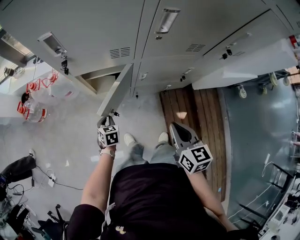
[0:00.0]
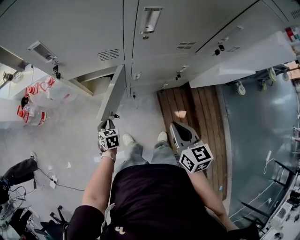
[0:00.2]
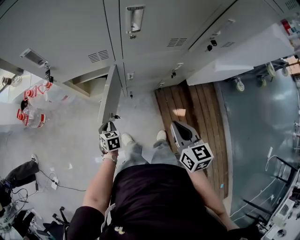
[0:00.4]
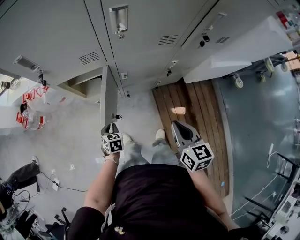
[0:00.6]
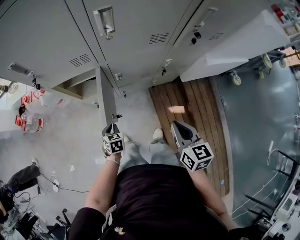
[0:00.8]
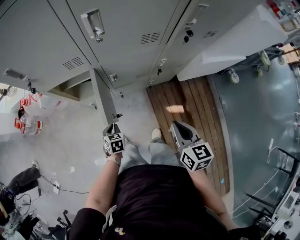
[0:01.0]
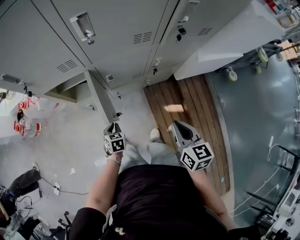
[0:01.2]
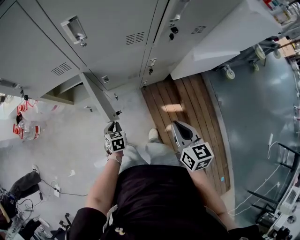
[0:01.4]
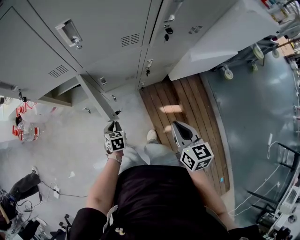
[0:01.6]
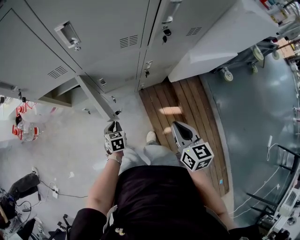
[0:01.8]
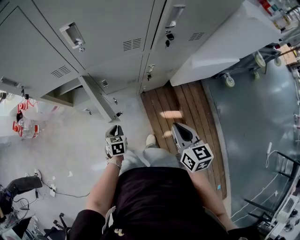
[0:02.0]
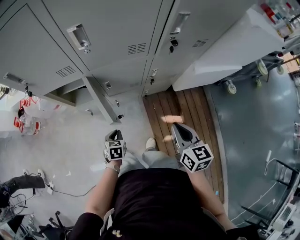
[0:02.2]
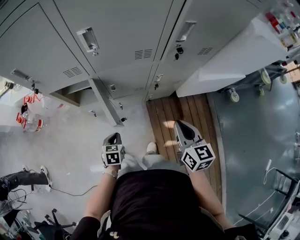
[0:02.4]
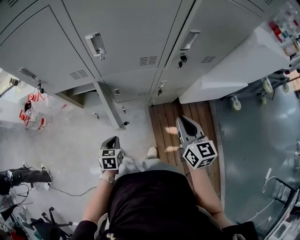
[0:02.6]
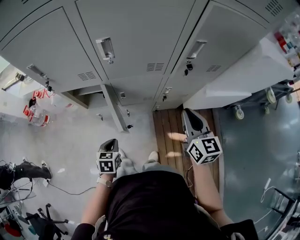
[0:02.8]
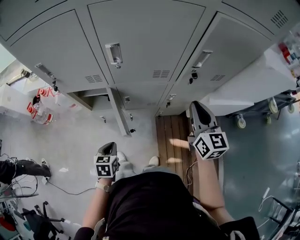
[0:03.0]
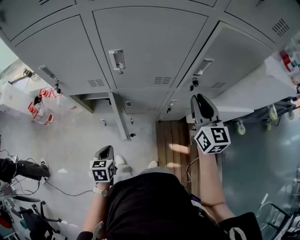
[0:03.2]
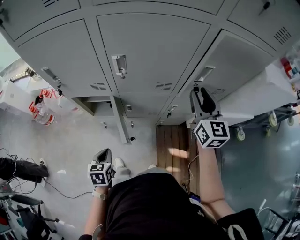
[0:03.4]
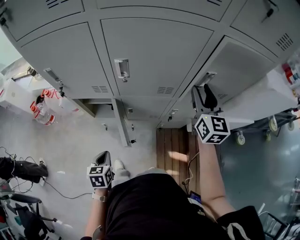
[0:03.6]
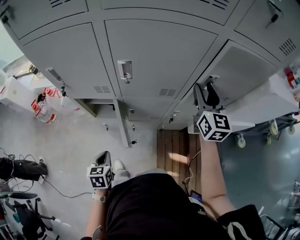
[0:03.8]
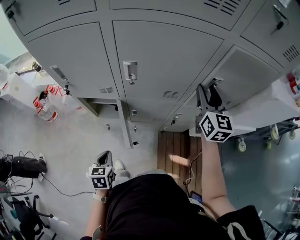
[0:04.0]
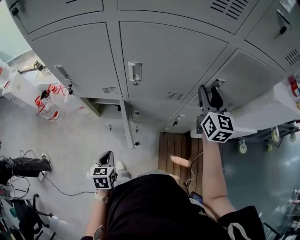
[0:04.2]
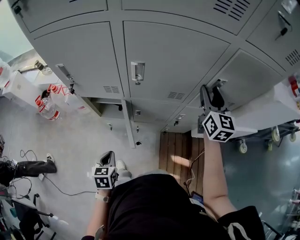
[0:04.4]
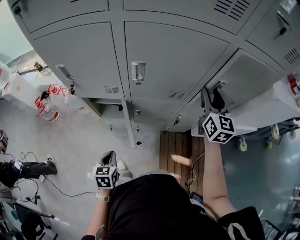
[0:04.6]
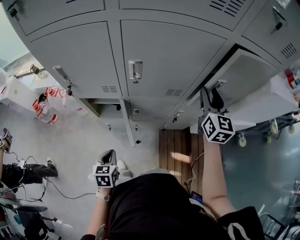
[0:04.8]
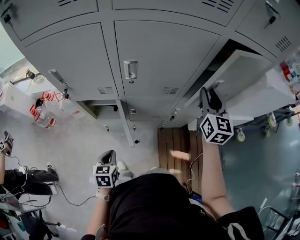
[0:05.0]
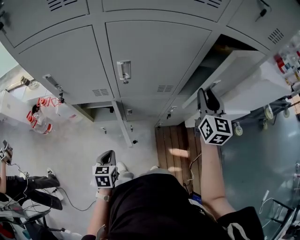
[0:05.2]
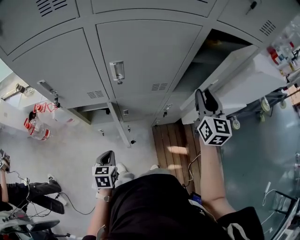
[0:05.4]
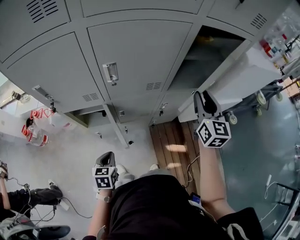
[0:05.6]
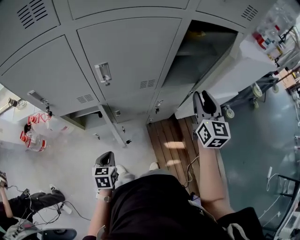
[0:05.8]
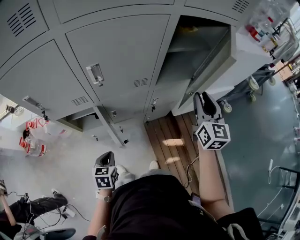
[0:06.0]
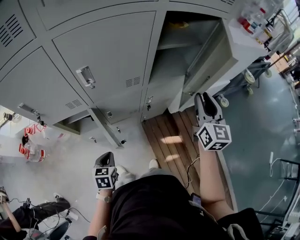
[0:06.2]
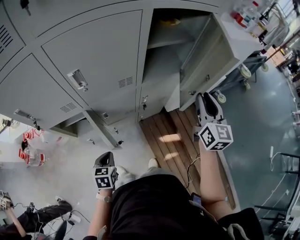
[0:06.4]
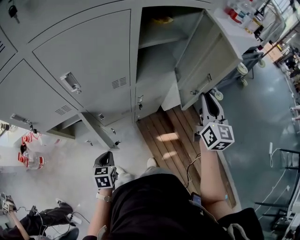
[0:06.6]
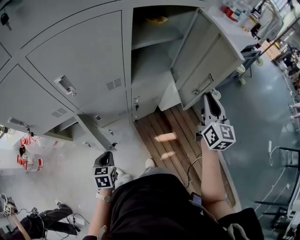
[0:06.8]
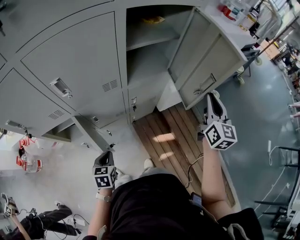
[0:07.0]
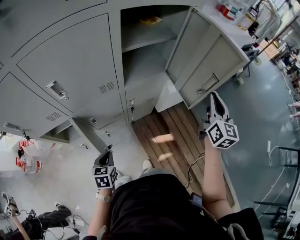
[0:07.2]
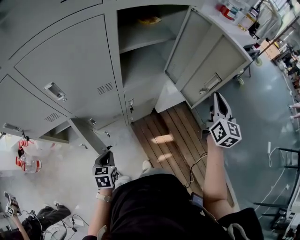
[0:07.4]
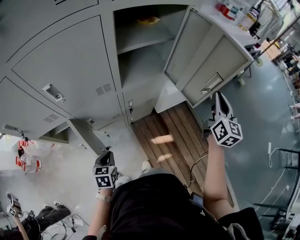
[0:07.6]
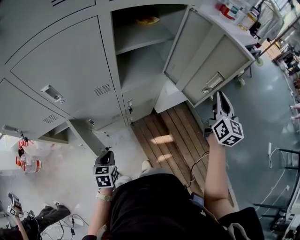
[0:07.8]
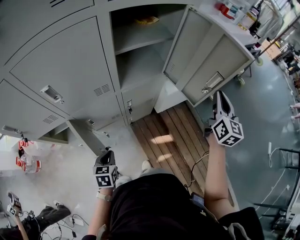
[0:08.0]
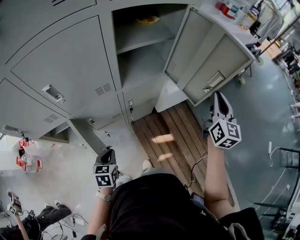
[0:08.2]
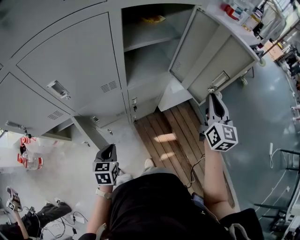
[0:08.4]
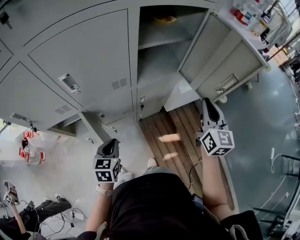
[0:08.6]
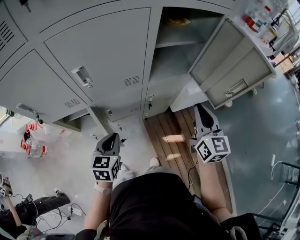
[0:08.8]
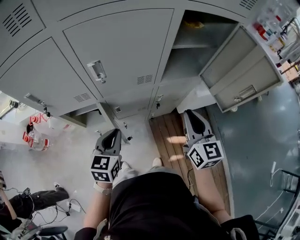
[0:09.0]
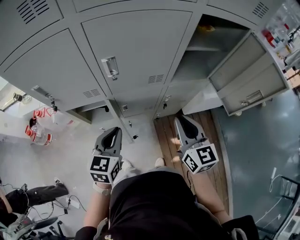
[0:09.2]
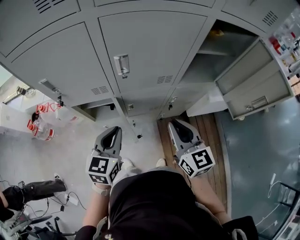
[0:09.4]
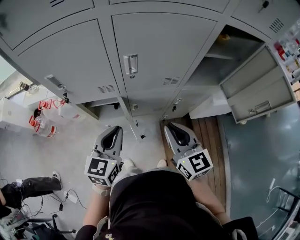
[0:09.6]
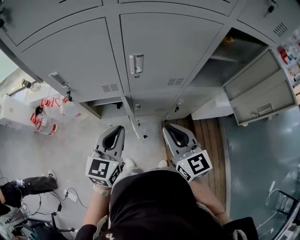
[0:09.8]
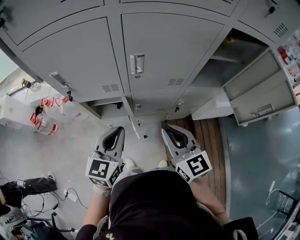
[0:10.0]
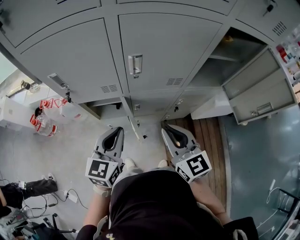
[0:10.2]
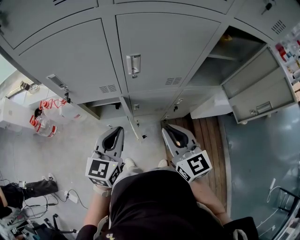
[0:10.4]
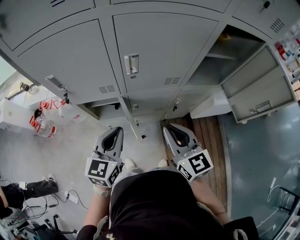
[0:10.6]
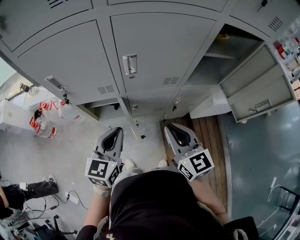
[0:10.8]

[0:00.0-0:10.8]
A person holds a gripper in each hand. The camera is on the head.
0:00.0 to 0:01.6: The grippers both shift to the right by approximately 20 cm.
0:01.6 to 0:03.0: The right gripper heads forward and upward, covering some 25 cm, and rotates some 20 degrees; the left gripper heads upward, covering approximately 15 cm.
0:03.0 to 0:04.6: The right gripper goes about 15 cm forward and upward, and opens up, while the left gripper ends up approximately 5 cm from where it was.
0:04.6 to 0:06.2: The right gripper goes approximately 20 cm backward and to the right, and rotates roughly 20 degrees; the left gripper goes approximately 5 cm to the right, and turns by roughly 20 degrees.
0:06.2 to 0:07.8: The right gripper goes roughly 20 cm to the right. The left gripper travels to the right and forward by approximately 10 cm.
0:07.8 to 0:09.2: The right gripper is displaced to the left by approximately 35 cm, and rotates roughly 40 degrees. Meanwhile the left gripper is displaced upward and to the left by about 20 cm, and turns by roughly 20 degrees.
0:09.2 to 0:10.8: The left gripper moves some 5 cm. Meanwhile the right gripper heads to the left, covering some 10 cm.

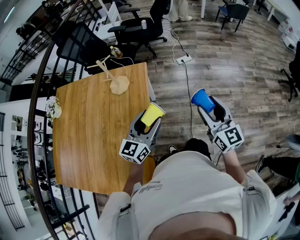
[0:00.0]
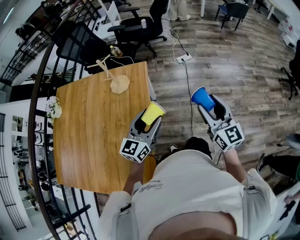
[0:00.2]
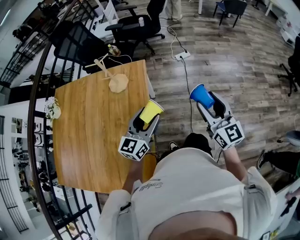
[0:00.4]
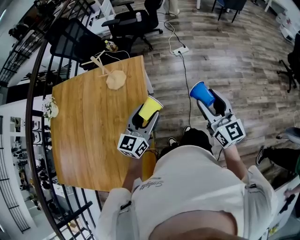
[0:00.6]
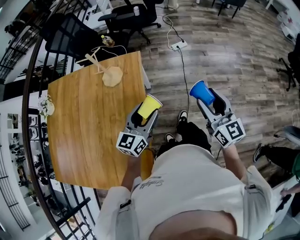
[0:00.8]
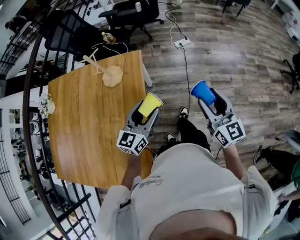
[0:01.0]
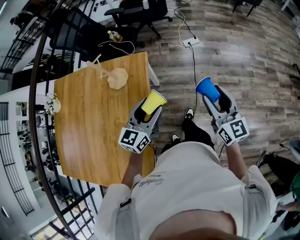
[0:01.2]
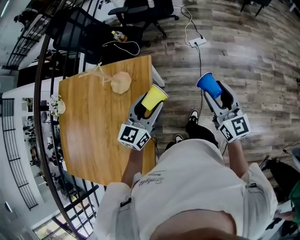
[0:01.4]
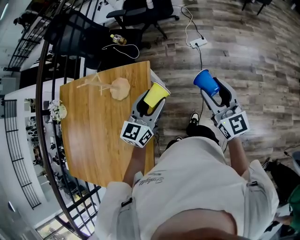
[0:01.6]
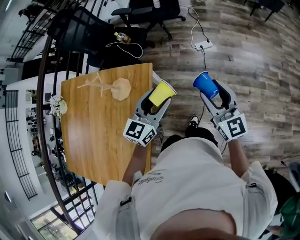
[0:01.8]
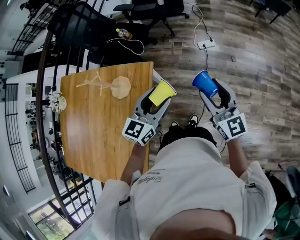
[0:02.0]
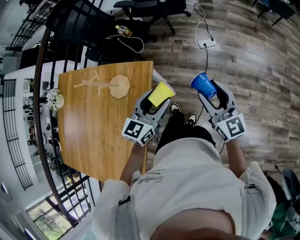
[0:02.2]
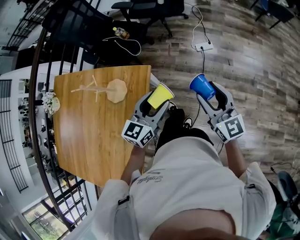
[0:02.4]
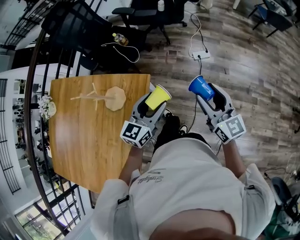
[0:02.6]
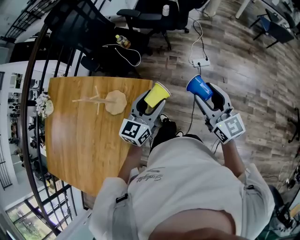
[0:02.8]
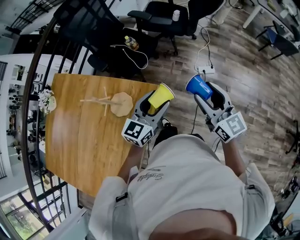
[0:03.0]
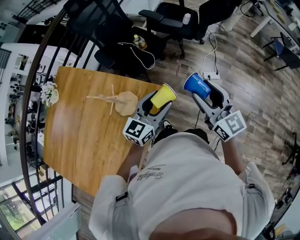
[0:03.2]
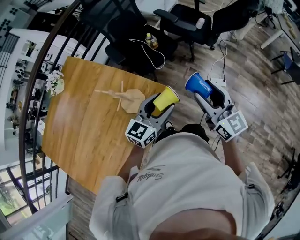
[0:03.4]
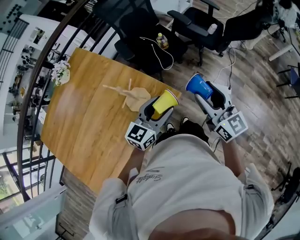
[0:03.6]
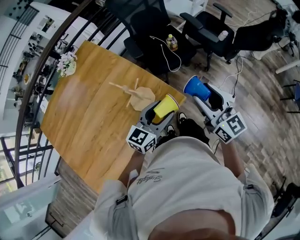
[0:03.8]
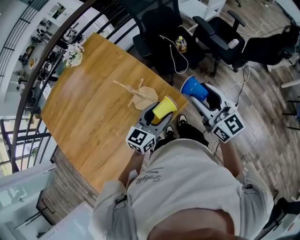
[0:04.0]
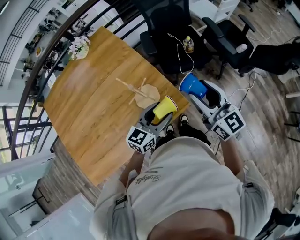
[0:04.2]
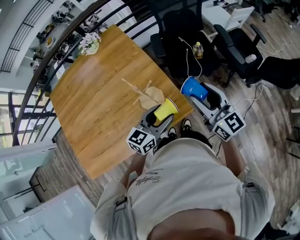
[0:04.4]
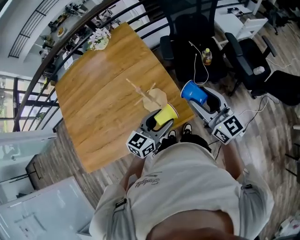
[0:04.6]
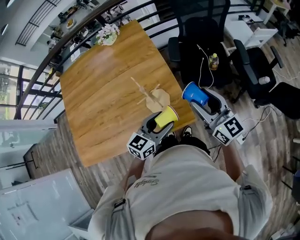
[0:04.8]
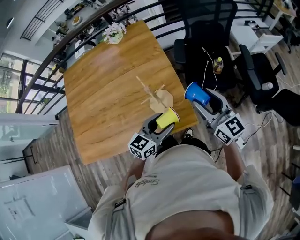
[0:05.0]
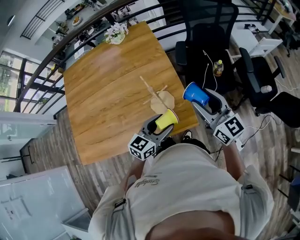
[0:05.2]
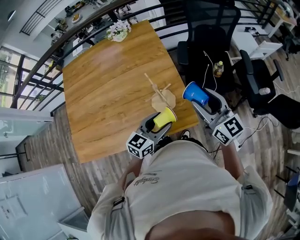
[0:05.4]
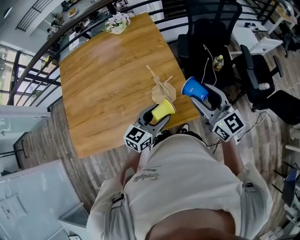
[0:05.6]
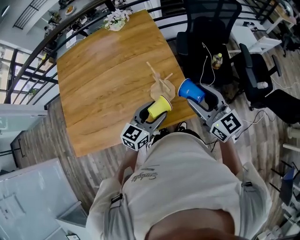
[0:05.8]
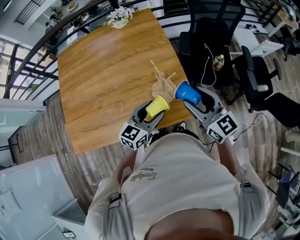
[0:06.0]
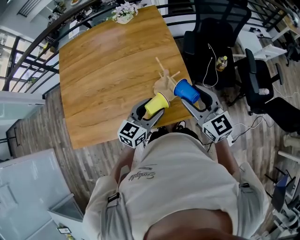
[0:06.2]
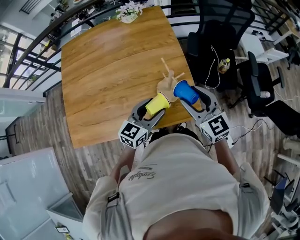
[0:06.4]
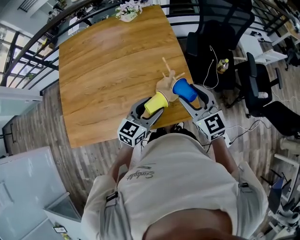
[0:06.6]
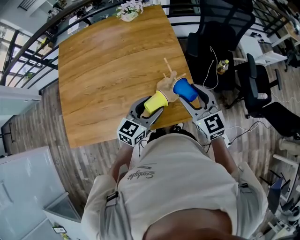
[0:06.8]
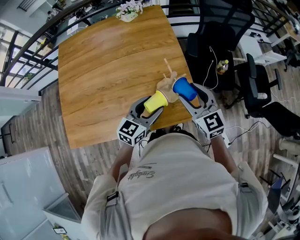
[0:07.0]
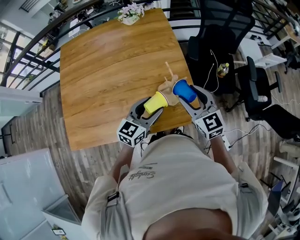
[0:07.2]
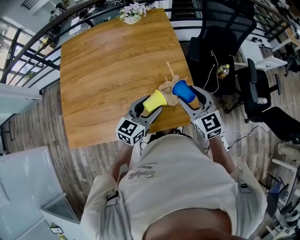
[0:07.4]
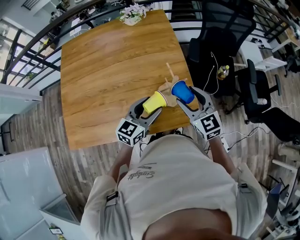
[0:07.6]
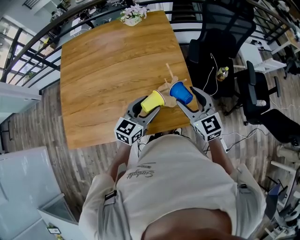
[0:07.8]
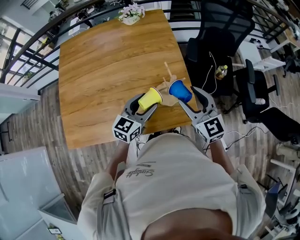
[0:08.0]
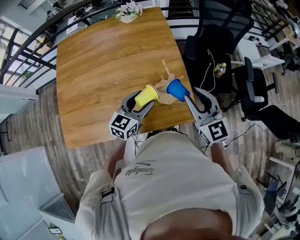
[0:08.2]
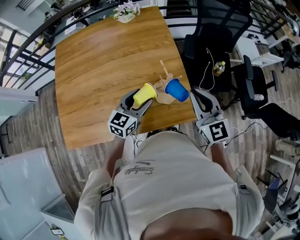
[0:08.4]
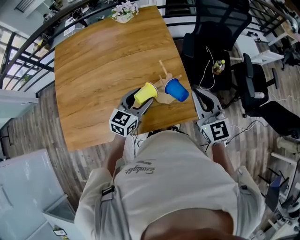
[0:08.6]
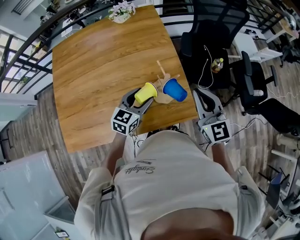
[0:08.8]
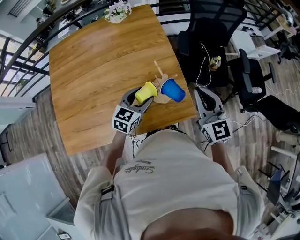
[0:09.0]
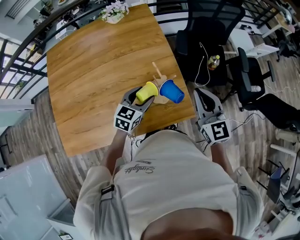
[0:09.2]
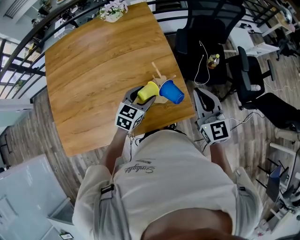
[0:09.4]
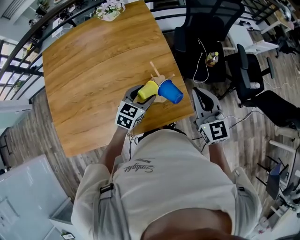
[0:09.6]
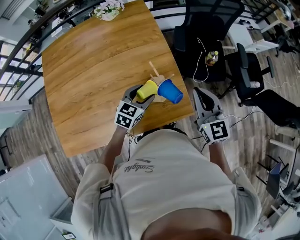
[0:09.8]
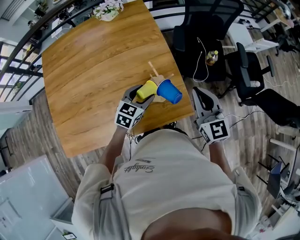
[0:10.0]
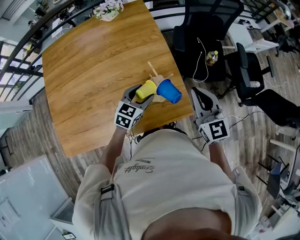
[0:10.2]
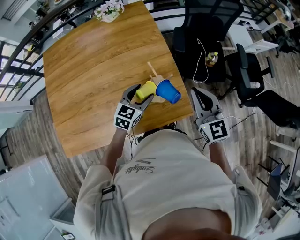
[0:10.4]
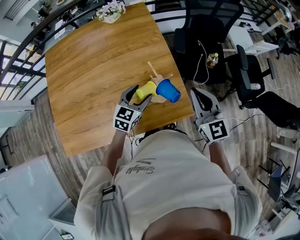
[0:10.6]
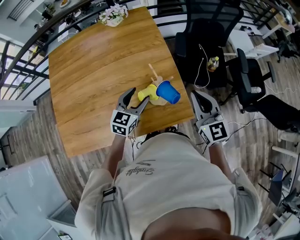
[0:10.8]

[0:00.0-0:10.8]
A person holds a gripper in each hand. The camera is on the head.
0:00.0 to 0:01.6: Both grippers travel together forward, roughly 25 cm.
0:01.6 to 0:03.0: The left gripper shifts about 20 cm forward. The right gripper is displaced forward and to the left by approximately 25 cm.
0:03.0 to 0:04.6: The right gripper shifts by about 25 cm, and rotates about 50 degrees. Meanwhile the left gripper shifts by approximately 15 cm, and turns by some 40 degrees.
0:04.6 to 0:06.2: Both grippers travel together to the left, some 15 cm. The right gripper rotates about 20 degrees.
0:06.2 to 0:07.8: The left gripper shifts by some 5 cm, while the right gripper ends up about 5 cm from where it was.
0:07.8 to 0:09.2: The right gripper travels to the right by about 5 cm, and closes its fingers, while the left gripper moves downward and forward, some 10 cm.
0:09.2 to 0:10.8: There are only small adjustments of the grippers.

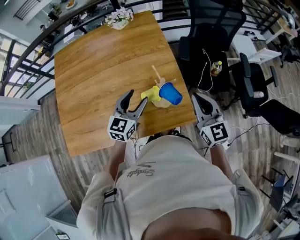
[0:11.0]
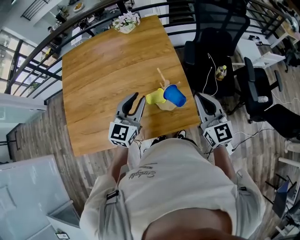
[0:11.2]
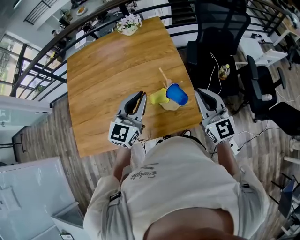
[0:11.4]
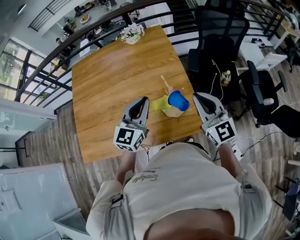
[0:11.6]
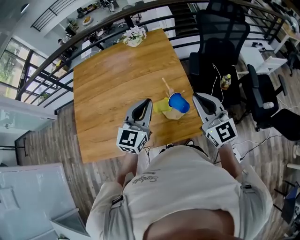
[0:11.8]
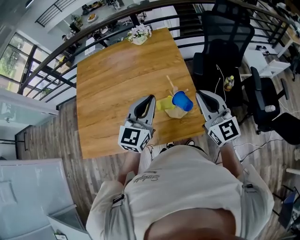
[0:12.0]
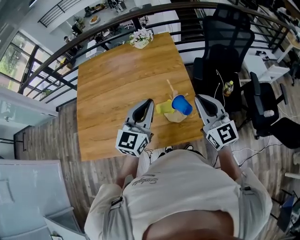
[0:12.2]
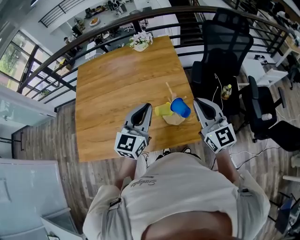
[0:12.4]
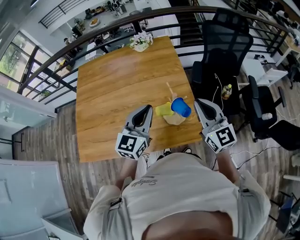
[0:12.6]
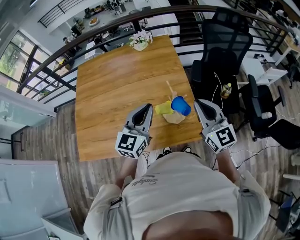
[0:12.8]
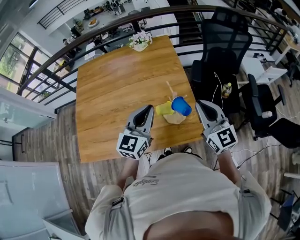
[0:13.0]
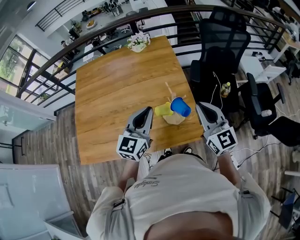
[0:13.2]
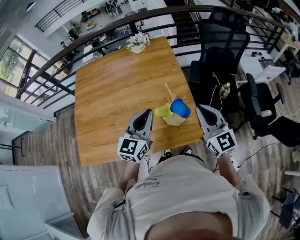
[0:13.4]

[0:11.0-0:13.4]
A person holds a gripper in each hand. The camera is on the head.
0:11.0 to 0:12.2: The right gripper moves upward, some 10 cm, while the left gripper goes roughly 15 cm upward, and closes its fingers.
0:12.2 to 0:13.4: The grippers make only small movements.
